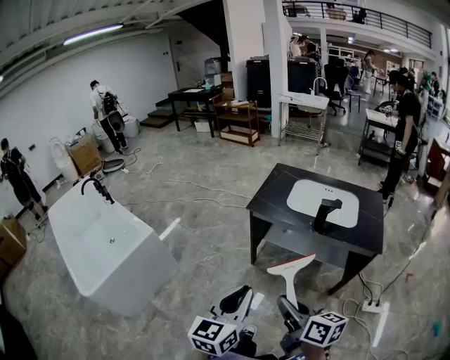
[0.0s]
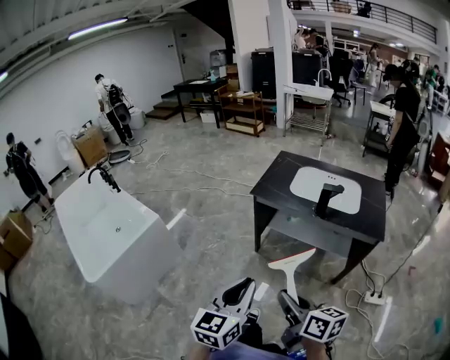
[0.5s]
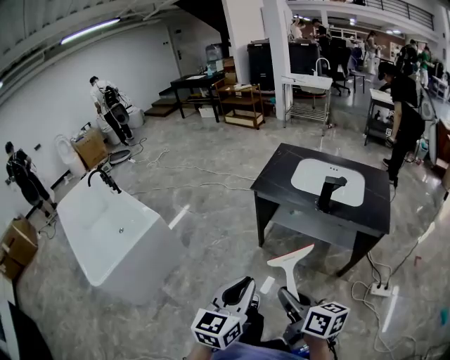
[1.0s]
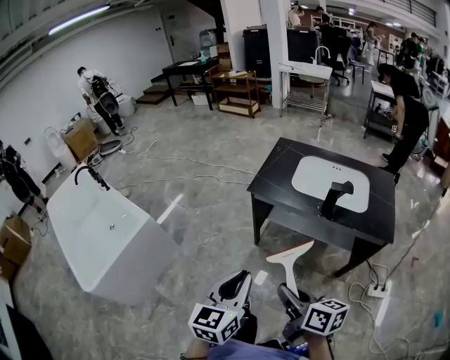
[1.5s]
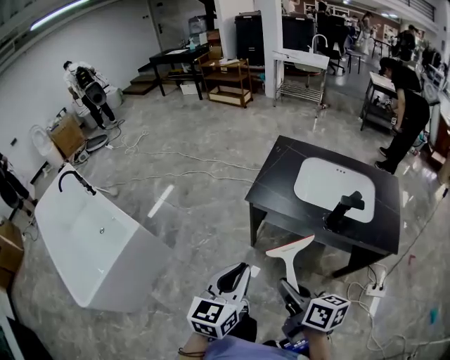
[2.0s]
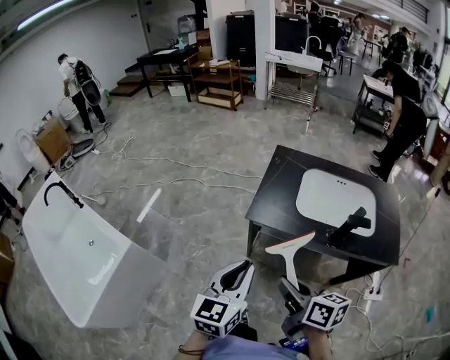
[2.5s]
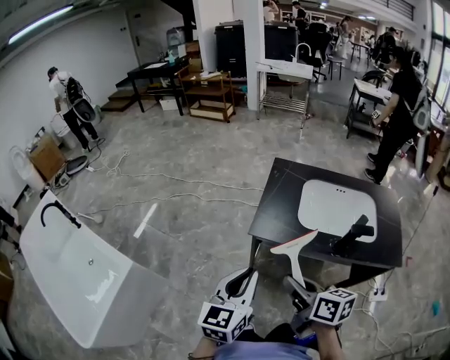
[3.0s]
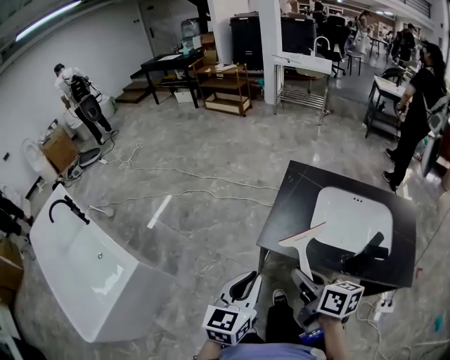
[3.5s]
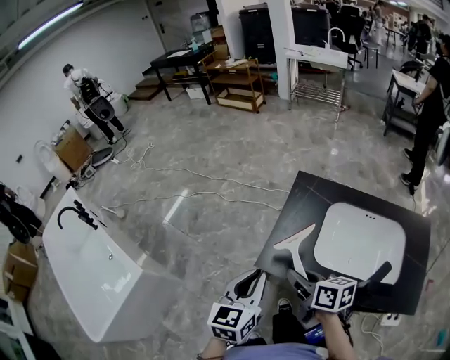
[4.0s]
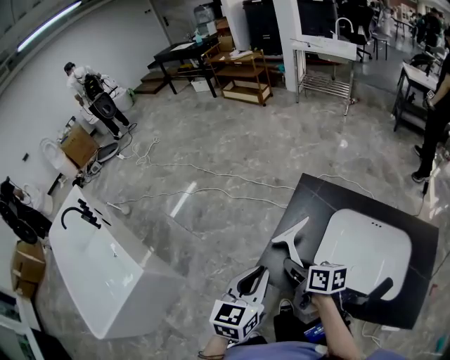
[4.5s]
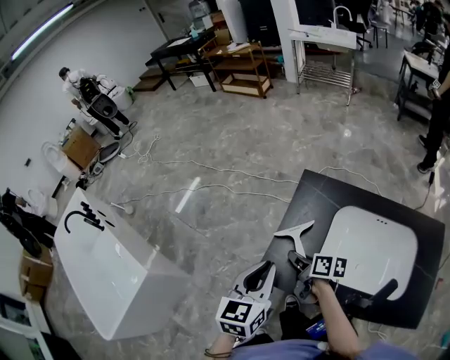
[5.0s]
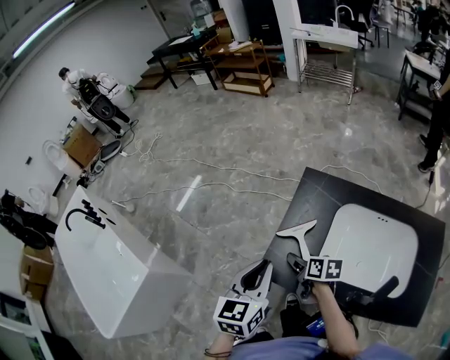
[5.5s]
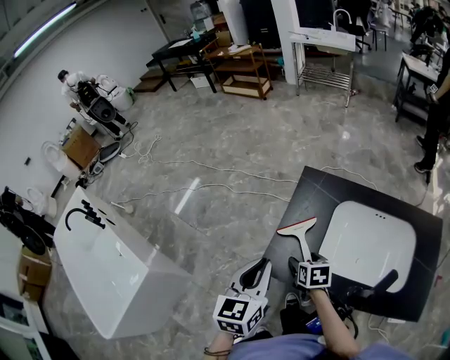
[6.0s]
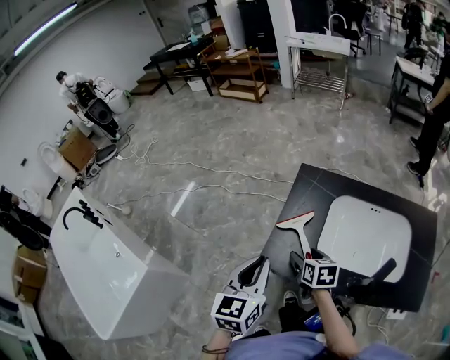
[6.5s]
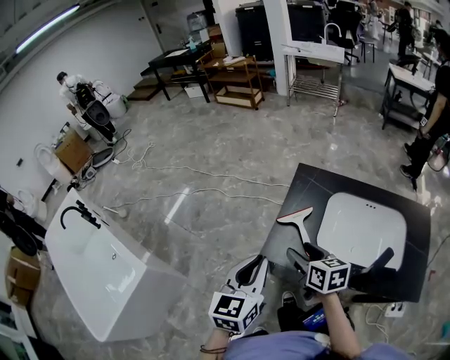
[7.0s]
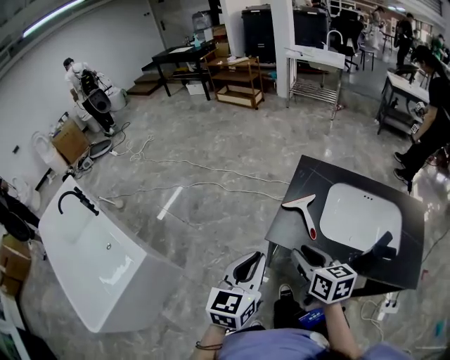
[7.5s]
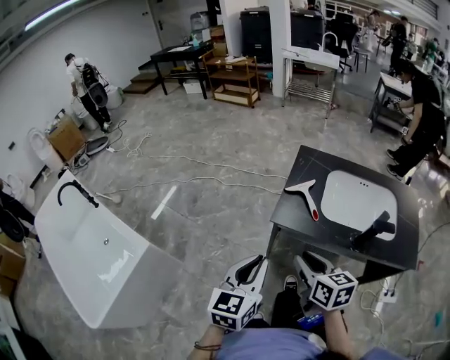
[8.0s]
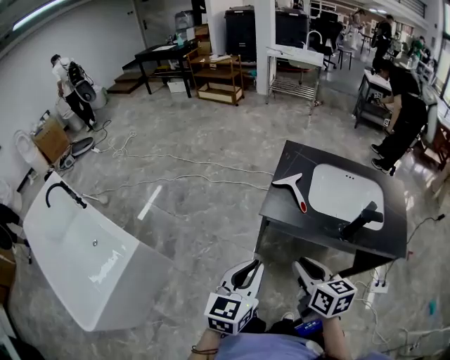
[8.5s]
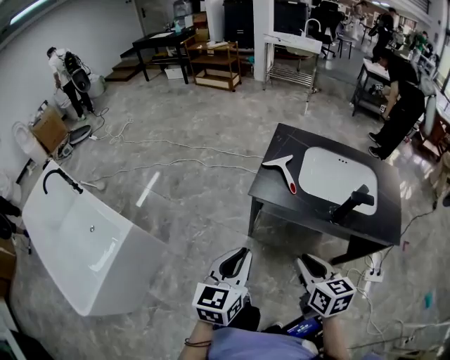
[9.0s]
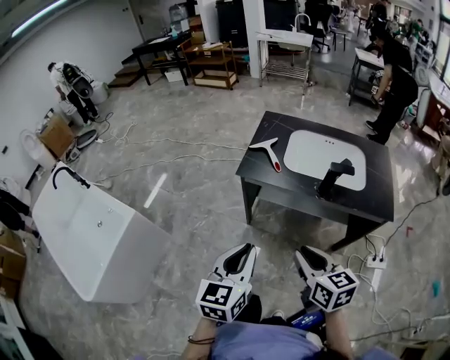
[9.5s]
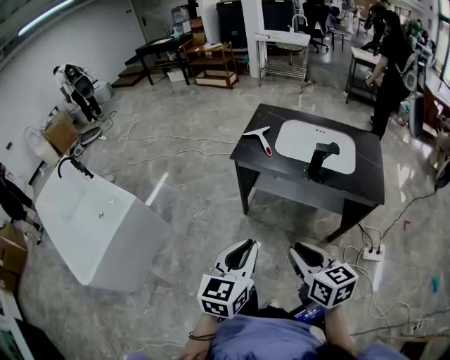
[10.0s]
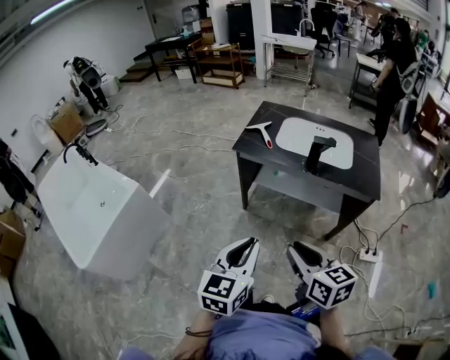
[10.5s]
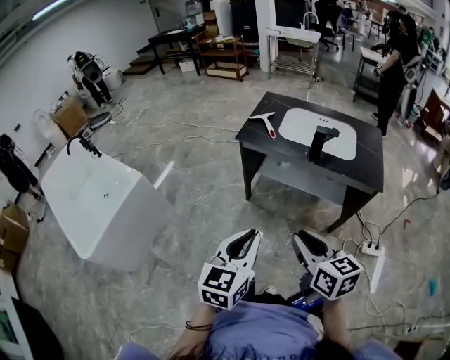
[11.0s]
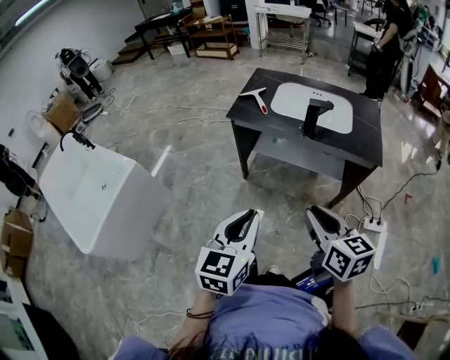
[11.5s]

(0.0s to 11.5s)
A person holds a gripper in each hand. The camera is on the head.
0.0s - 2.0s: The grippers both shift forward by roughly 20 cm.
2.0s - 4.0s: Both grippers move forward, about 35 cm.
4.0s - 6.0s: The right gripper goes approximately 20 cm downward, forward and to the right, rotates about 30 degrees, and opens up. The left gripper goes some 5 cm forward.
6.0s - 7.5s: The left gripper moves backward and to the left, some 15 cm. The right gripper travels upward, backward and to the left by about 25 cm, turns by approximately 30 degrees, and closes.
7.5s - 9.5s: The two grippers go some 30 cm backward.
9.5s - 11.5s: The right gripper moves backward and to the right, approximately 15 cm. The left gripper is displaced backward by approximately 15 cm.

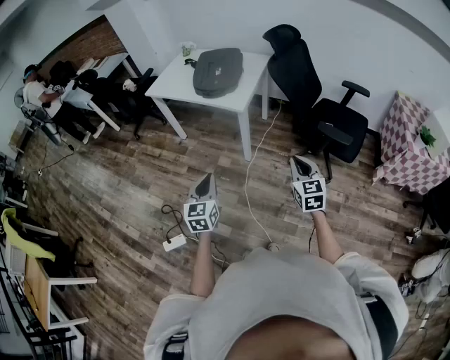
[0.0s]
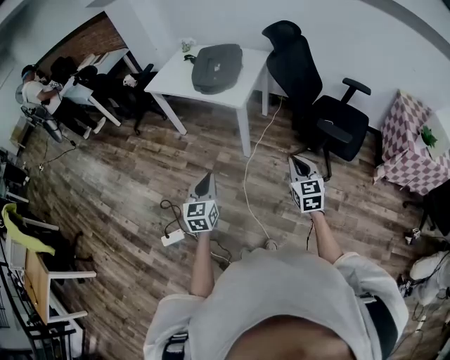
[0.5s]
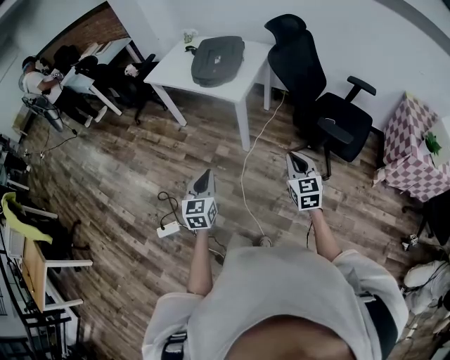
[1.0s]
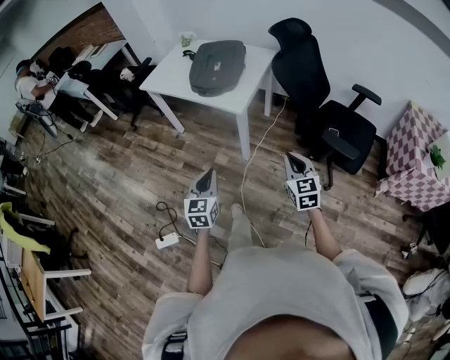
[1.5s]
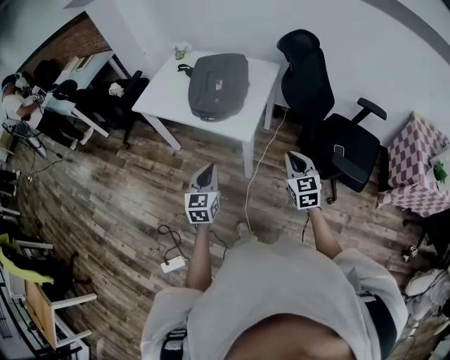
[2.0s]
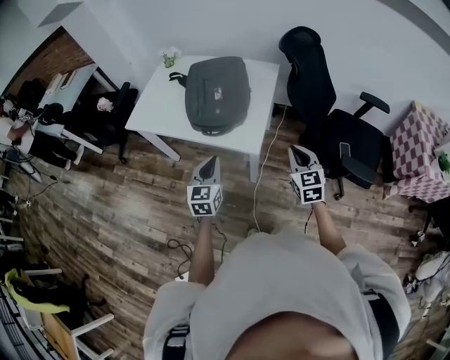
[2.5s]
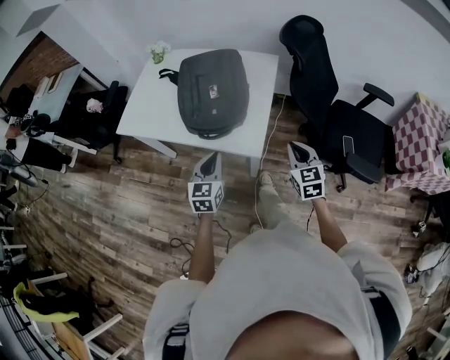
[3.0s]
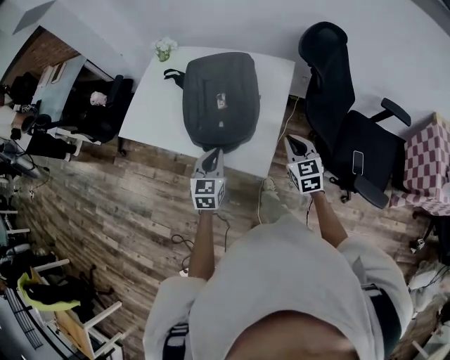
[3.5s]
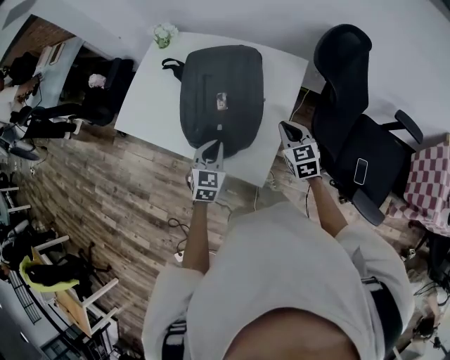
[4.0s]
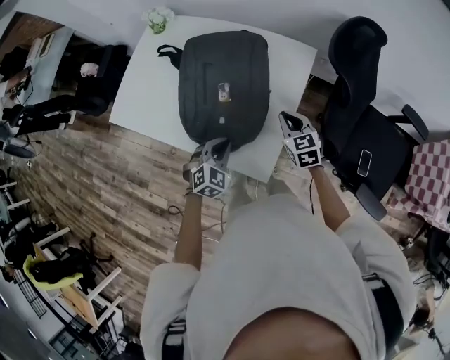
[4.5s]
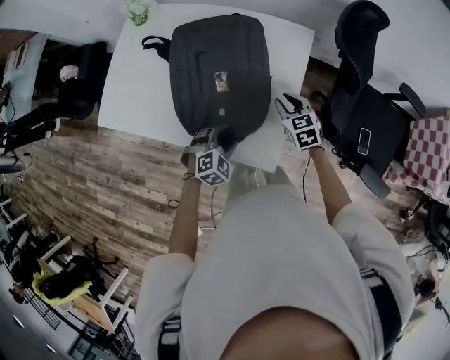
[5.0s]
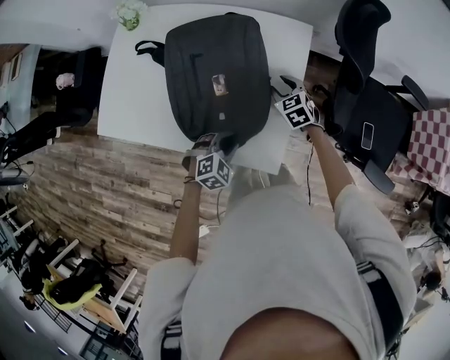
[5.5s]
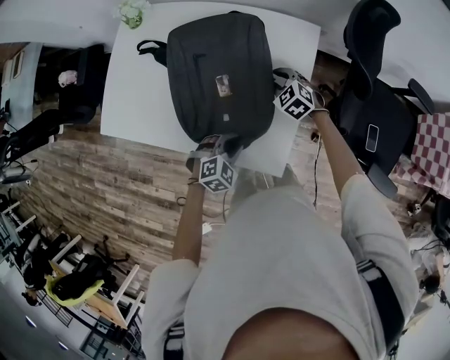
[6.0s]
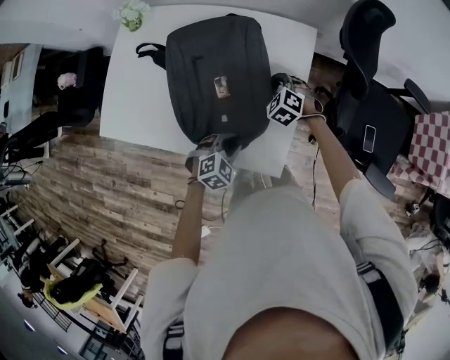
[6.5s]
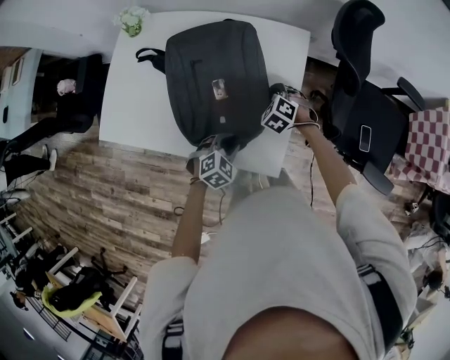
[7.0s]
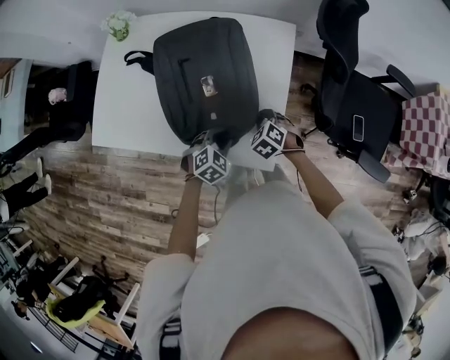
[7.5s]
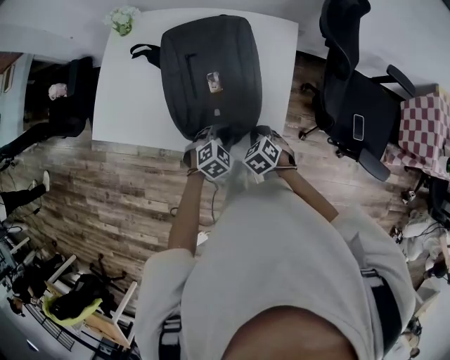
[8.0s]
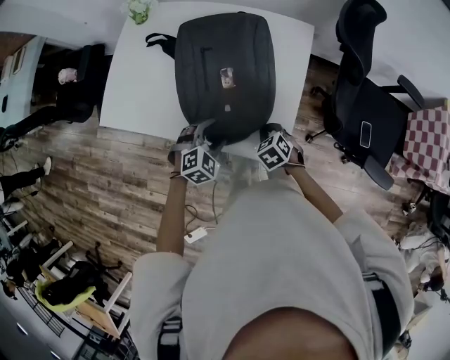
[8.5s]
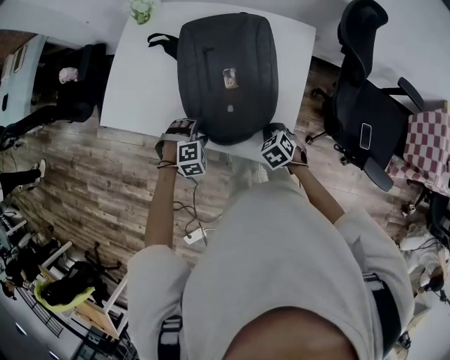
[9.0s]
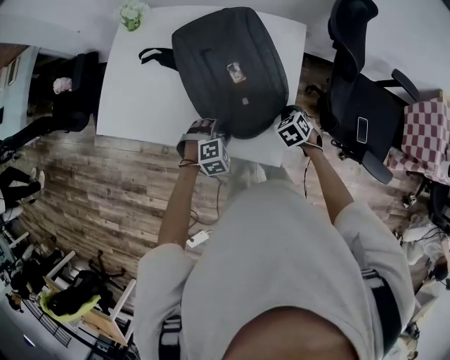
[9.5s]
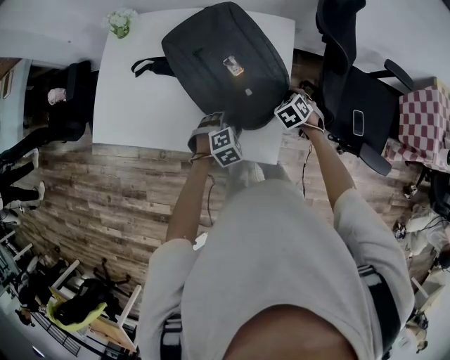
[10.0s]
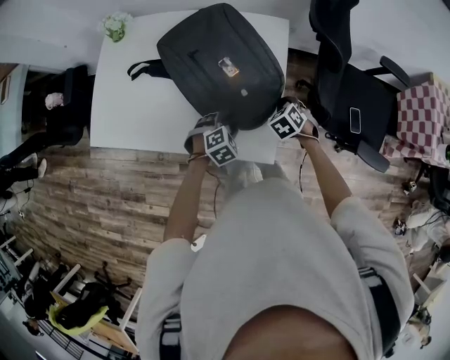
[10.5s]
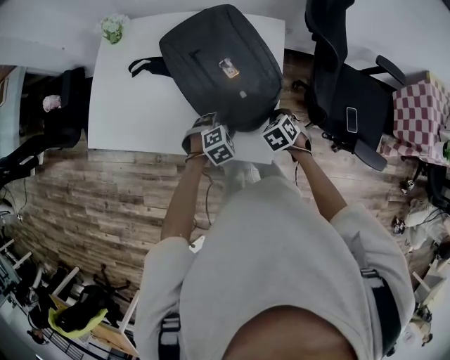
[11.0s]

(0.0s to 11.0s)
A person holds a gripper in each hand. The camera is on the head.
0.0s - 2.0s: The grippers both shift forward by roughly 30 cm.
2.0s - 3.5s: Both grippers move forward, roughly 30 cm.
3.5s - 5.5s: The right gripper is displaced forward and downward by some 25 cm, swivels some 20 degrees, and opens up; the left gripper travels downward and forward by approximately 15 cm, tips its fingers downward by approximately 30 degrees, and opens, then closes once more.
5.5s - 7.5s: The right gripper heads backward, covering approximately 15 cm, swivels approximately 20 degrees, and closes up.
7.5s - 9.0s: The right gripper shifts about 5 cm backward. Meanwhile the left gripper moves to the left, roughly 10 cm, swivels about 30 degrees, and opens.
9.0s - 11.0s: The left gripper ends up approximately 15 cm from where it was.

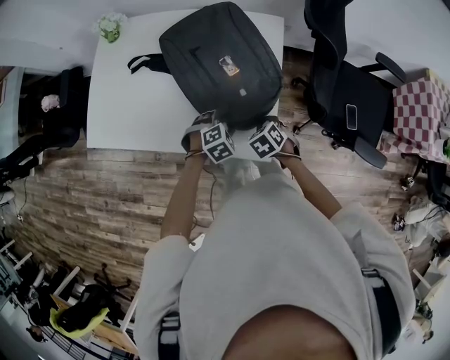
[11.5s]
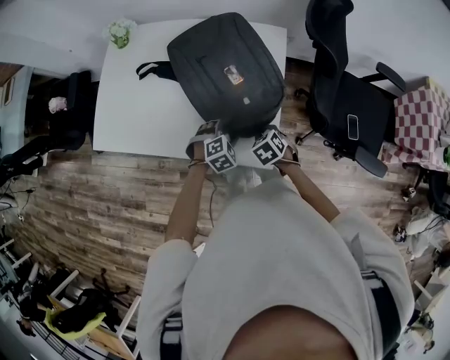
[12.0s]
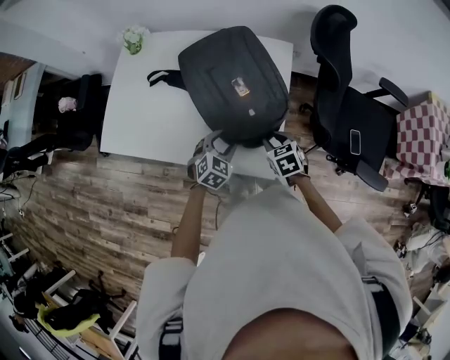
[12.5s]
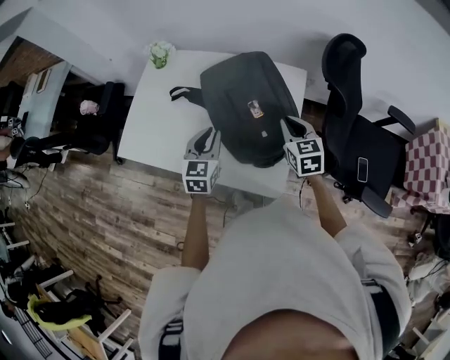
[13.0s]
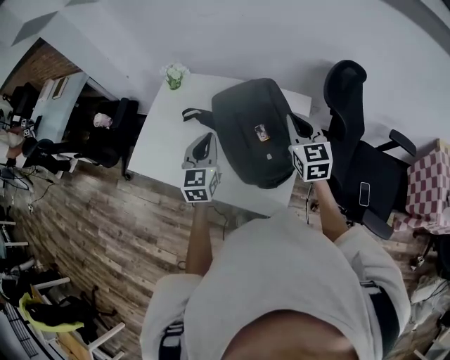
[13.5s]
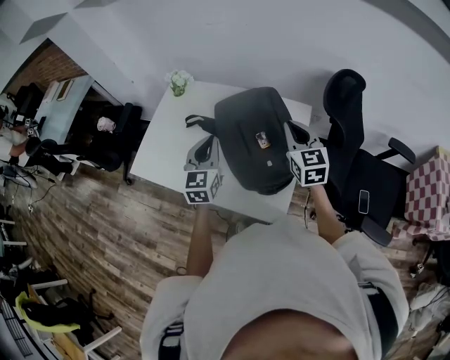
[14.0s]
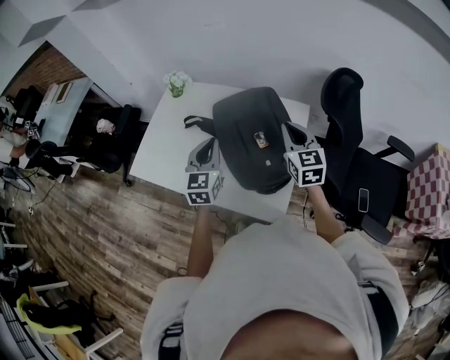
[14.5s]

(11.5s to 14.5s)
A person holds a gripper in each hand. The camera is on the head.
11.5s - 13.0s: The left gripper shifts some 25 cm upward and to the left, tips its fingers upward by about 40 degrees, and closes, while the right gripper goes roughly 20 cm upward and forward, tips its fingers upward by approximately 40 degrees, and opens, then closes once more.
13.0s - 14.5s: The two grippers go some 10 cm upward.

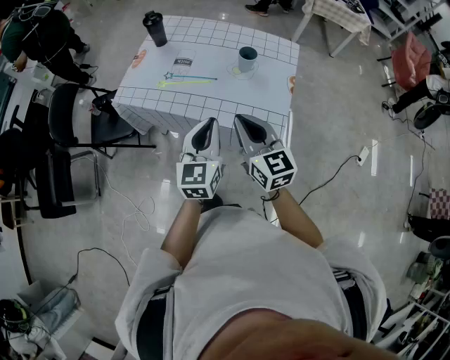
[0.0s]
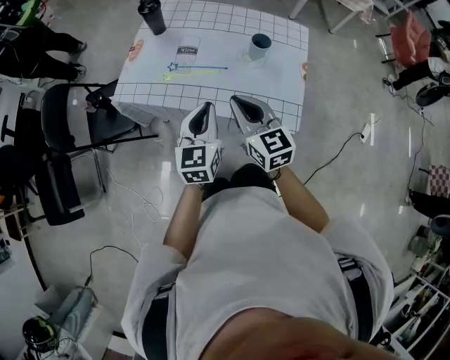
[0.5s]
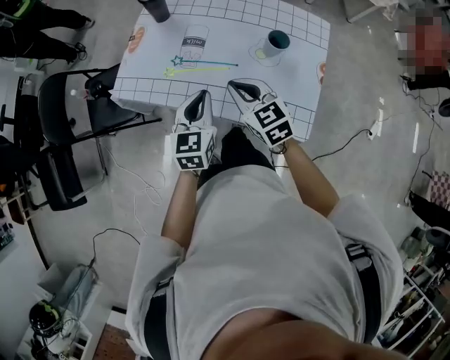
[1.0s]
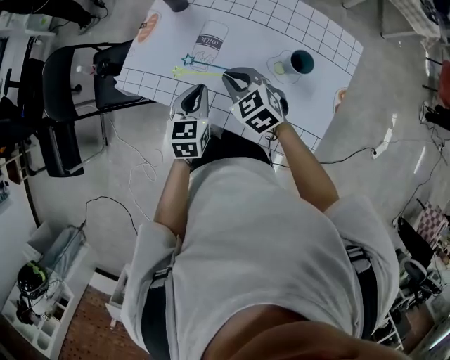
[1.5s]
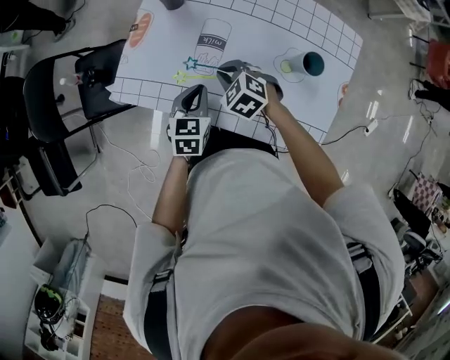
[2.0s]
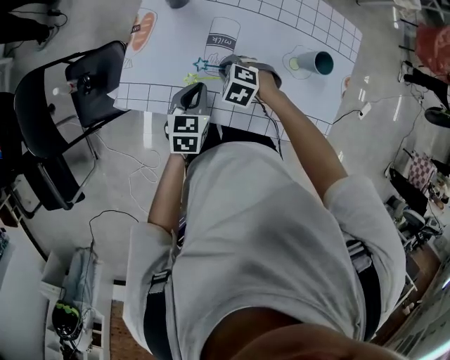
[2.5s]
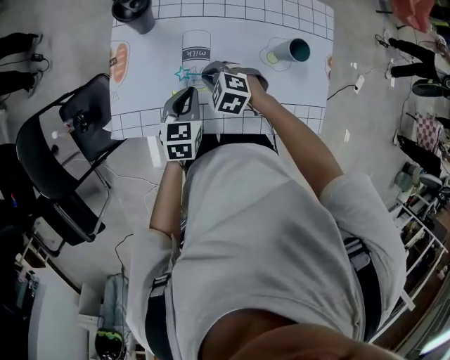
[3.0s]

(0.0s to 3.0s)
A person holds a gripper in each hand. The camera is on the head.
0.0s - 1.5s: Both grippers travel together forward and downward, approximately 35 cm. The right gripper tips its fingers downward by roughly 30 degrees; the left gripper rotates about 30 degrees.
1.5s - 3.0s: The right gripper travels downward by some 10 cm, and rotates approximately 30 degrees. Meanwhile the left gripper moves approximately 10 cm, and swivels approximately 20 degrees.
